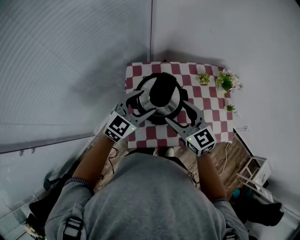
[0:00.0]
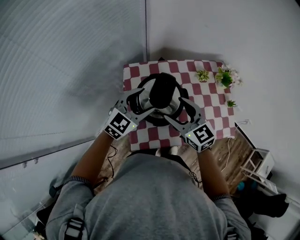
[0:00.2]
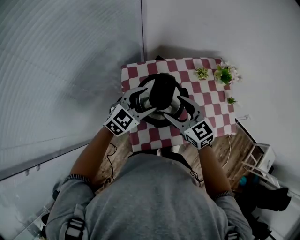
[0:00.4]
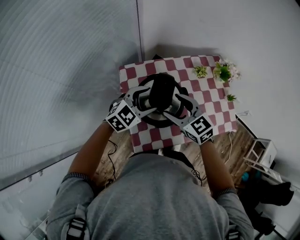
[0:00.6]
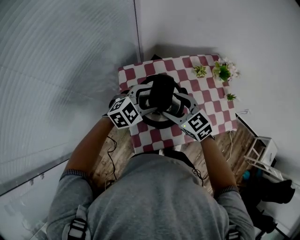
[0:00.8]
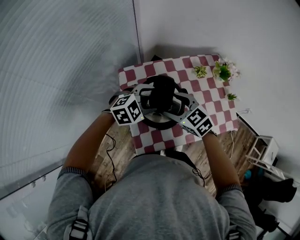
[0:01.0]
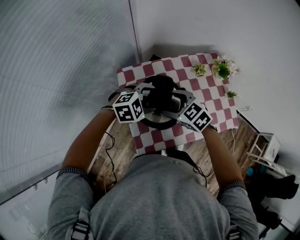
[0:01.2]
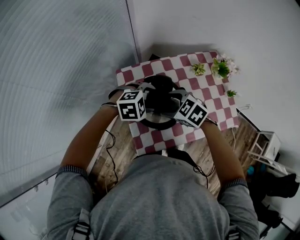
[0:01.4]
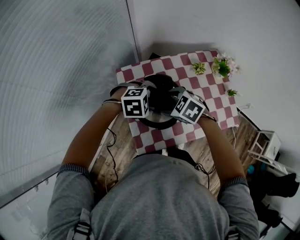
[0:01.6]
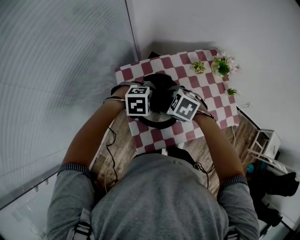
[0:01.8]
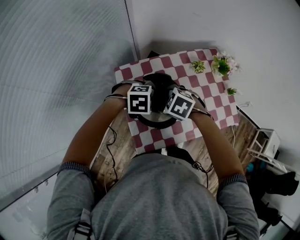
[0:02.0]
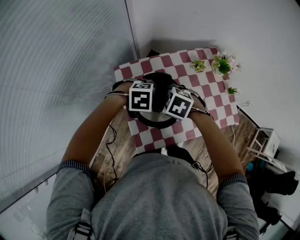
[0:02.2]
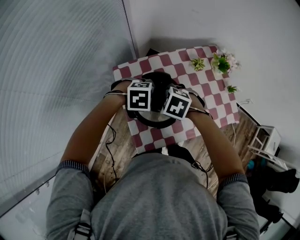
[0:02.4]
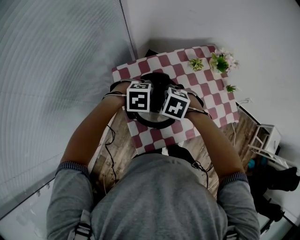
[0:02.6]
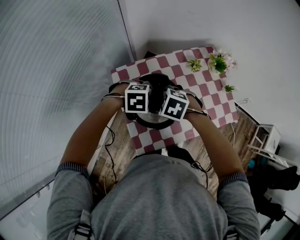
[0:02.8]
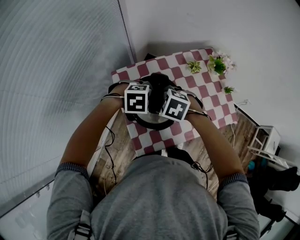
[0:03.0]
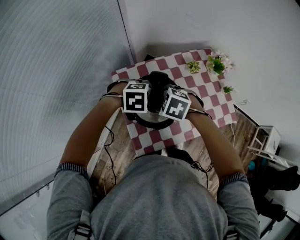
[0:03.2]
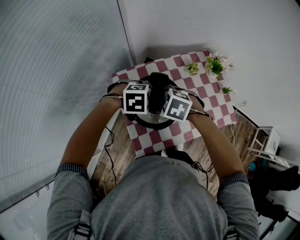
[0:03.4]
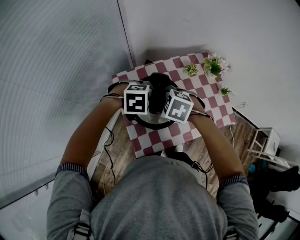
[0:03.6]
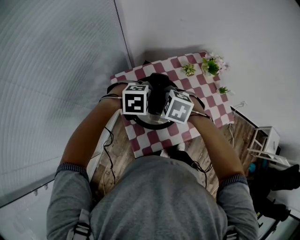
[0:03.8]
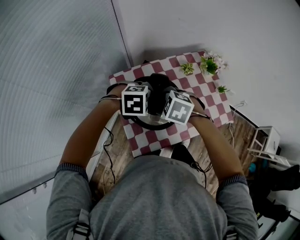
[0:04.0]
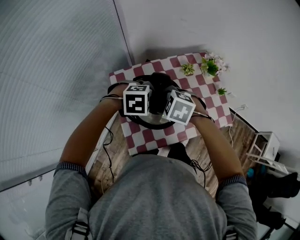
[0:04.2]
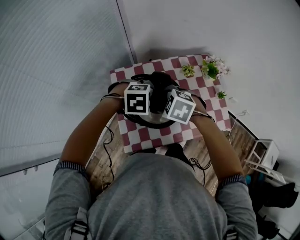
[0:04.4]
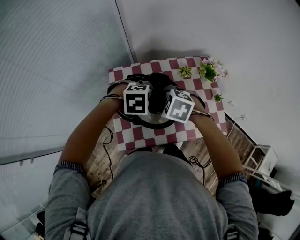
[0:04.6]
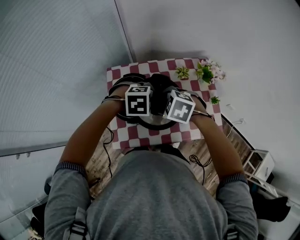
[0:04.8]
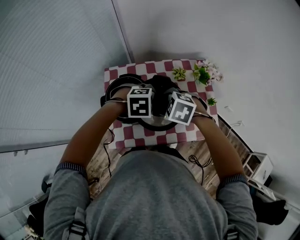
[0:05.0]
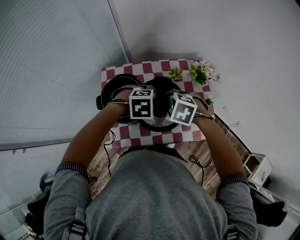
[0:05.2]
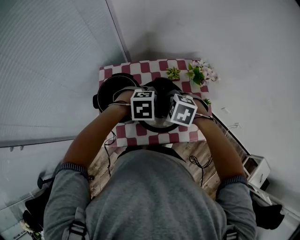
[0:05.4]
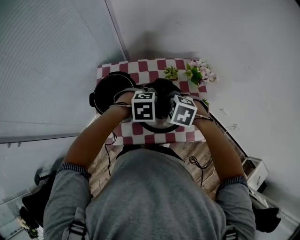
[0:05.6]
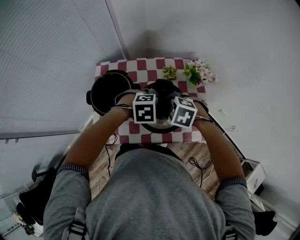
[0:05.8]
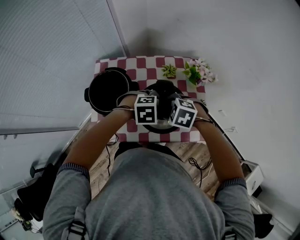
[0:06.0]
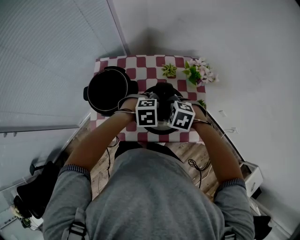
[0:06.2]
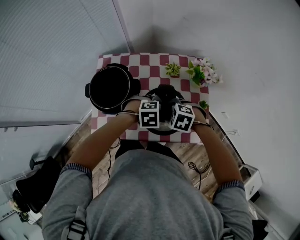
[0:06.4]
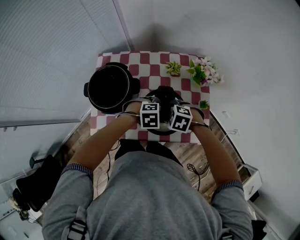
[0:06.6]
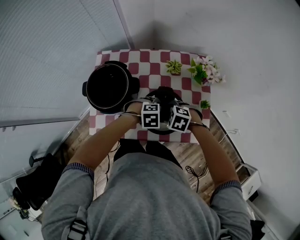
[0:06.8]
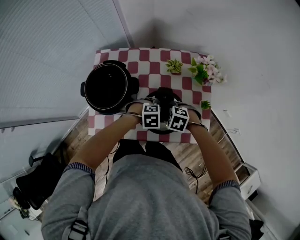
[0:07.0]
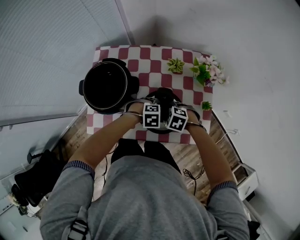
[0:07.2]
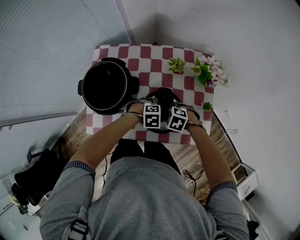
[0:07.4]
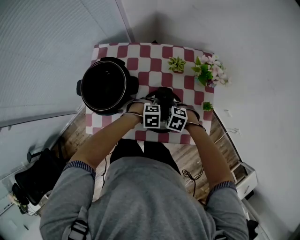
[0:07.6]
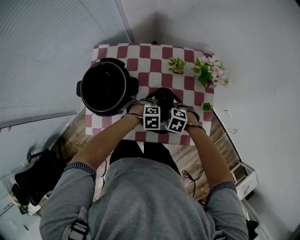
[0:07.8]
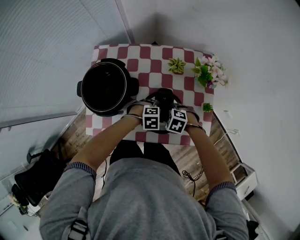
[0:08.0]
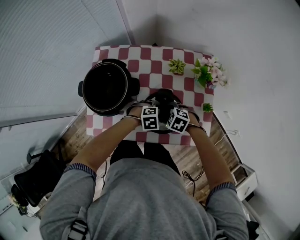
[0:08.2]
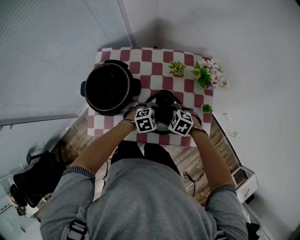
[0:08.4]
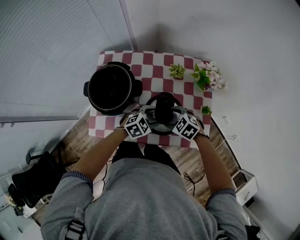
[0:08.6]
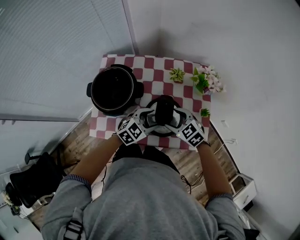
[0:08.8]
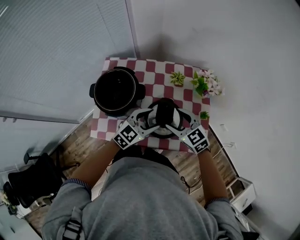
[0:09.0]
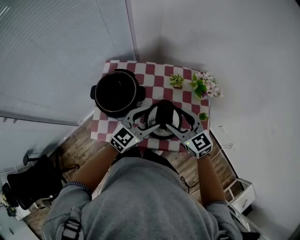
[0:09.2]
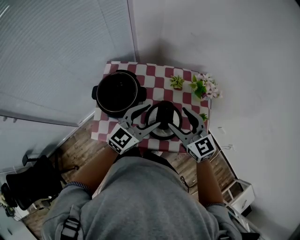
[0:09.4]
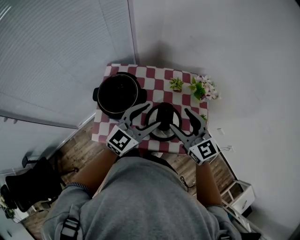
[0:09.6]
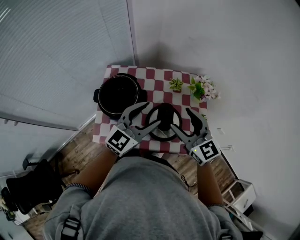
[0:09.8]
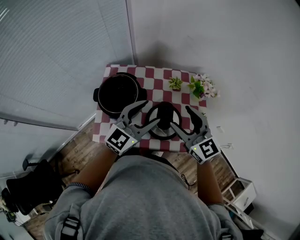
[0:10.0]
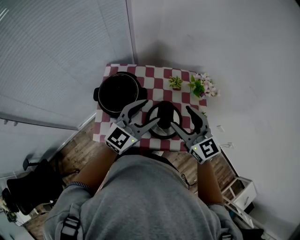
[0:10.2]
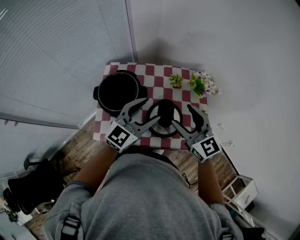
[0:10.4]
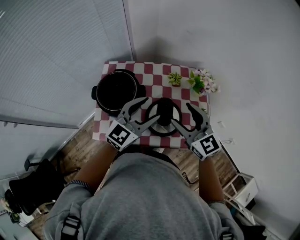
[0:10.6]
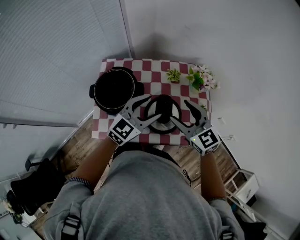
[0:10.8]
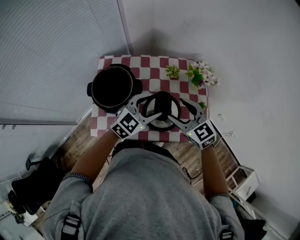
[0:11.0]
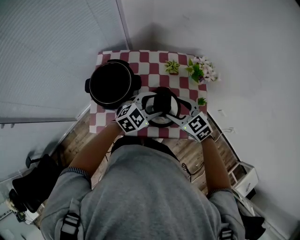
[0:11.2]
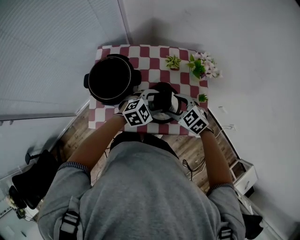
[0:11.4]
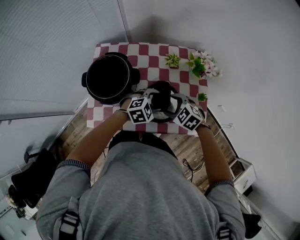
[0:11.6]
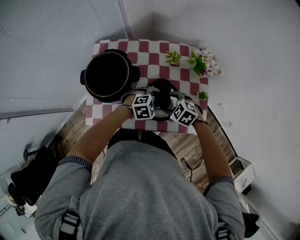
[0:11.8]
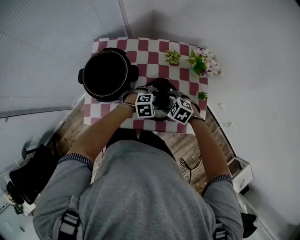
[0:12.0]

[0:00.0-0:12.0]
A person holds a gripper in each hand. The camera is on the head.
0:00.0 to 0:01.6: The two grippers go about 10 cm downward. The left gripper angles its fingers downward, by roughly 40 degrees. Meanwhile the right gripper points its fingers some 40 degrees further downward.
0:01.6 to 0:03.0: The grippers stay close to where they were, moving slightly.
0:03.0 to 0:04.4: The left gripper shifts by roughly 10 cm, while the right gripper shifts by about 10 cm.
0:04.4 to 0:06.0: The left gripper changes place by approximately 20 cm; the right gripper moves roughly 20 cm.
0:06.0 to 0:07.6: Both grippers travel together downward, about 20 cm.
0:07.6 to 0:09.0: Both grippers travel together upward, about 20 cm. The right gripper angles its fingers upward, by approximately 40 degrees. Meanwhile the left gripper angles its fingers upward, by some 50 degrees.
0:09.0 to 0:10.4: The grippers both shift upward by some 15 cm. The left gripper swivels some 20 degrees. The right gripper turns by some 20 degrees.
0:10.4 to 0:12.0: Both grippers travel together downward, approximately 30 cm. The left gripper tips its fingers downward by roughly 60 degrees; the right gripper points its fingers some 50 degrees further downward.

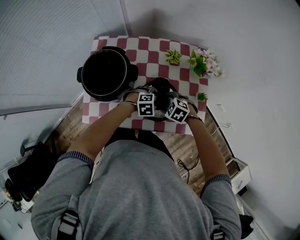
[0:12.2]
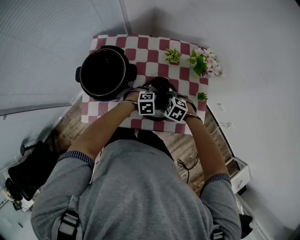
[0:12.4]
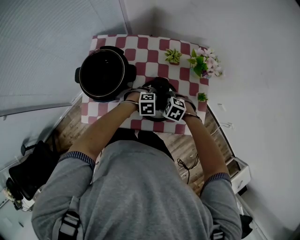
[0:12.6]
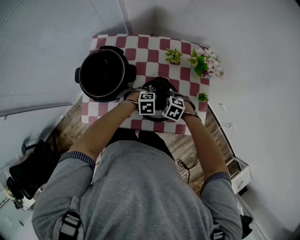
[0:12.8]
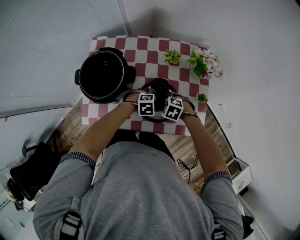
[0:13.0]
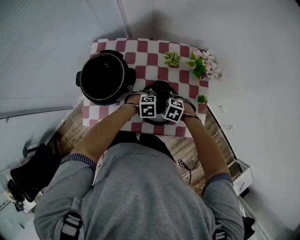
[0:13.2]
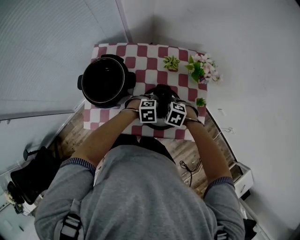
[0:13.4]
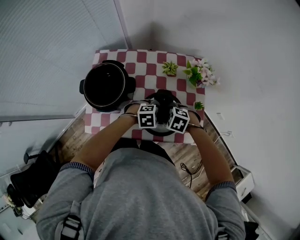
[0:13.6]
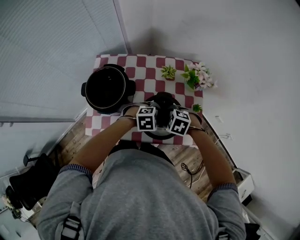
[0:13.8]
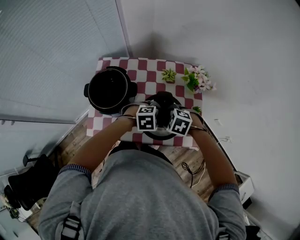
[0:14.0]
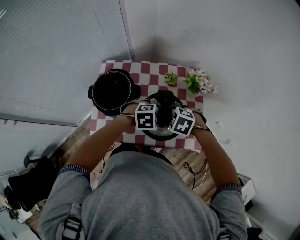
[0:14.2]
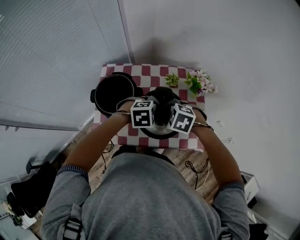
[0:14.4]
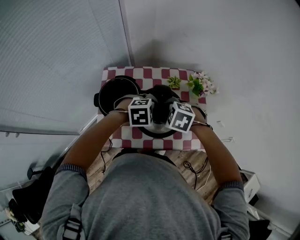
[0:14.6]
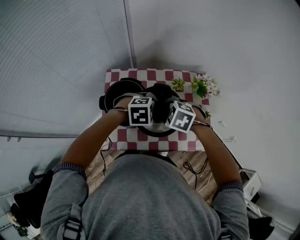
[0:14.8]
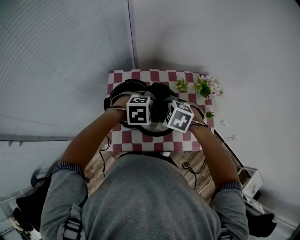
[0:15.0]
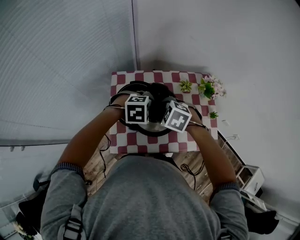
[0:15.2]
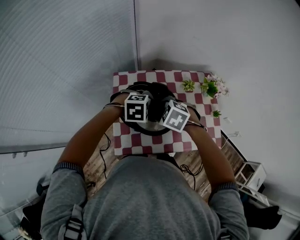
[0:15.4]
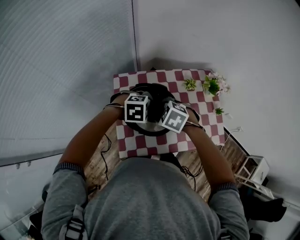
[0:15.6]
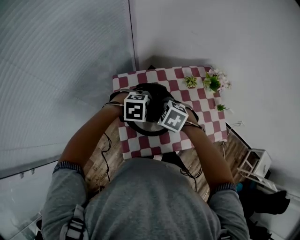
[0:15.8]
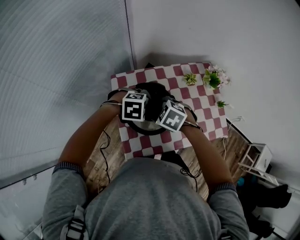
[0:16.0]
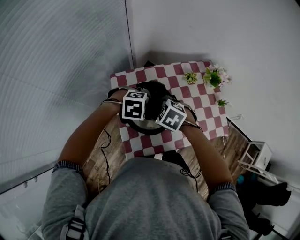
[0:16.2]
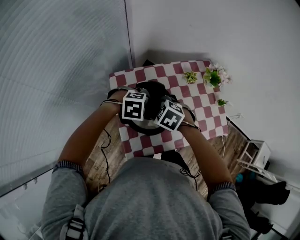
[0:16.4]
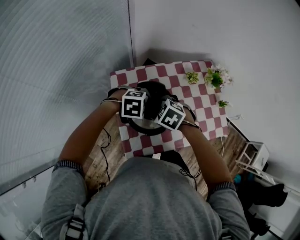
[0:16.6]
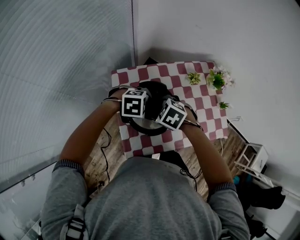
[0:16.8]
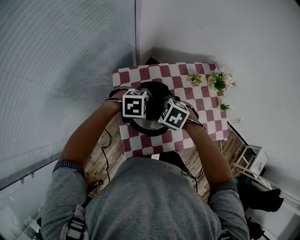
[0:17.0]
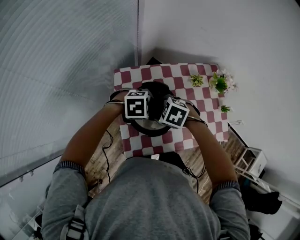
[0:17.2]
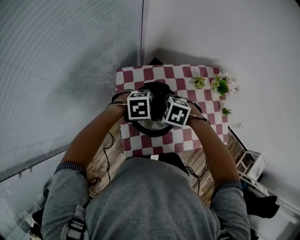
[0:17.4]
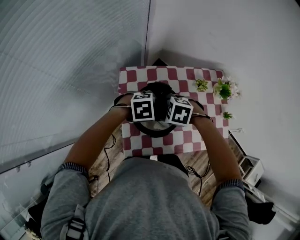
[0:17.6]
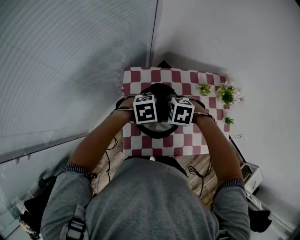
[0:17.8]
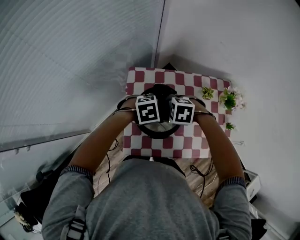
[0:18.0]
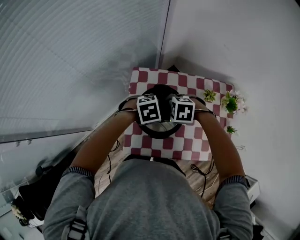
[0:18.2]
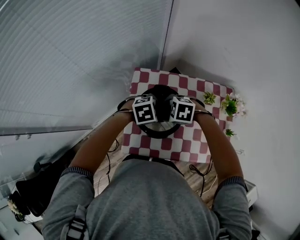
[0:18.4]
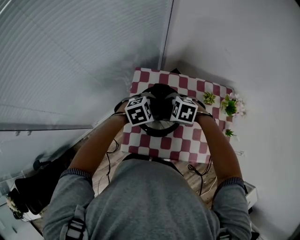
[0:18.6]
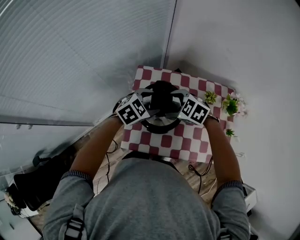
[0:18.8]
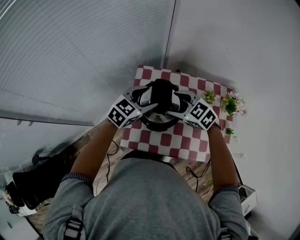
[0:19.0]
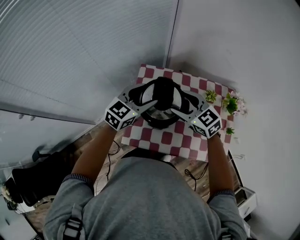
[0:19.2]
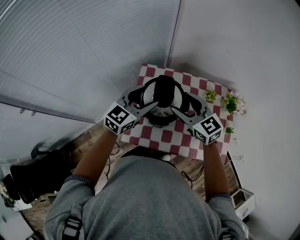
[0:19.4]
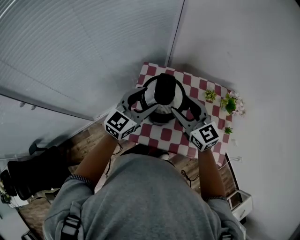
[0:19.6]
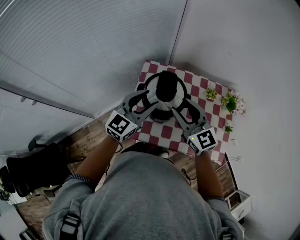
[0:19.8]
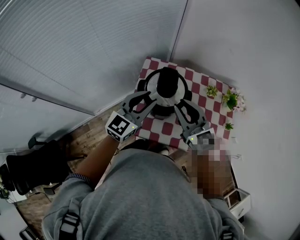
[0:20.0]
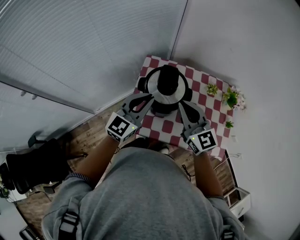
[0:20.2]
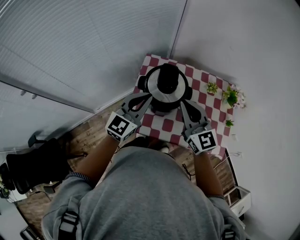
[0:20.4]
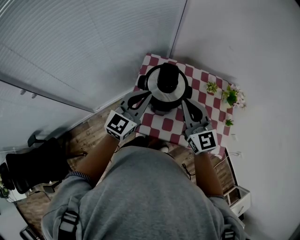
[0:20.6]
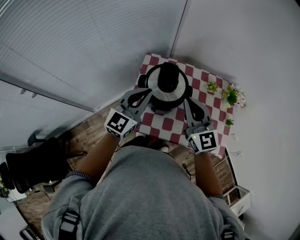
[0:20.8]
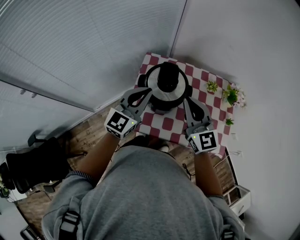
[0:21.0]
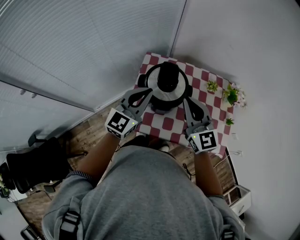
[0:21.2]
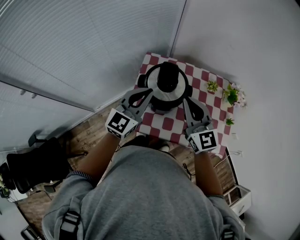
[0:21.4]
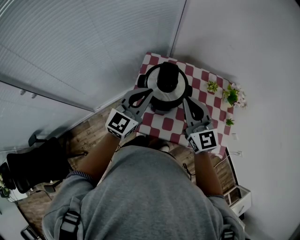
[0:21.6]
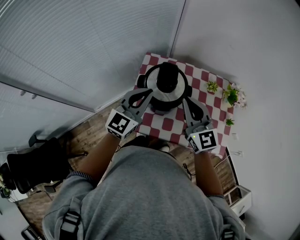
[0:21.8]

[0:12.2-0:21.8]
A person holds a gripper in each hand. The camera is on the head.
0:12.2 to 0:13.8: Both grippers move upward, some 10 cm.
0:13.8 to 0:15.4: The left gripper moves roughly 30 cm, while the right gripper changes place by approximately 30 cm.
0:15.4 to 0:17.0: The left gripper ends up approximately 10 cm from where it was, while the right gripper ends up some 10 cm from where it was.
0:17.0 to 0:18.6: The right gripper rotates roughly 30 degrees. Meanwhile the left gripper rotates some 40 degrees.
0:18.6 to 0:20.2: The grippers both shift upward by approximately 15 cm. The right gripper points its fingers approximately 60 degrees further upward, and closes up. The left gripper tips its fingers upward by roughly 50 degrees, and closes its fingers.
0:20.2 to 0:21.8: The grippers stay close to where they were, moving slightly.

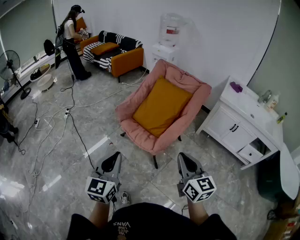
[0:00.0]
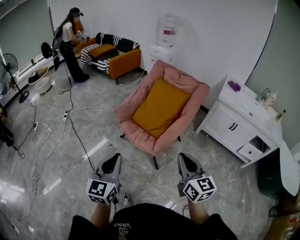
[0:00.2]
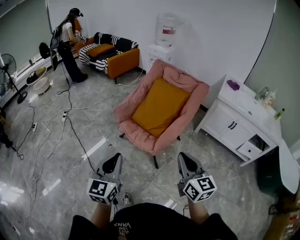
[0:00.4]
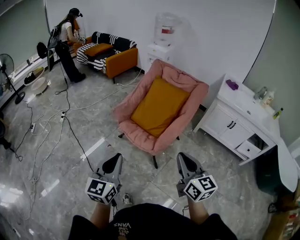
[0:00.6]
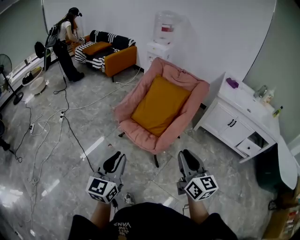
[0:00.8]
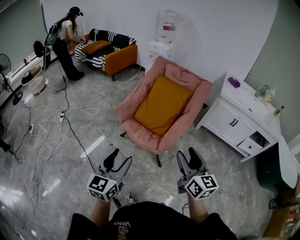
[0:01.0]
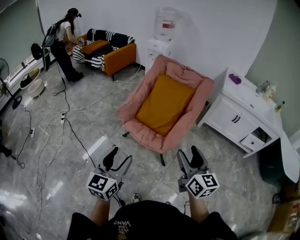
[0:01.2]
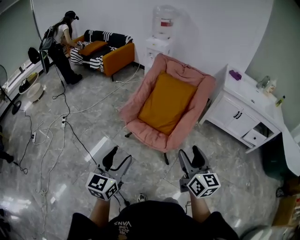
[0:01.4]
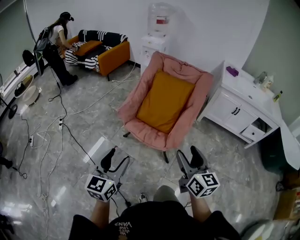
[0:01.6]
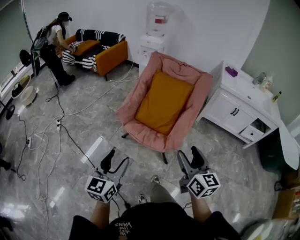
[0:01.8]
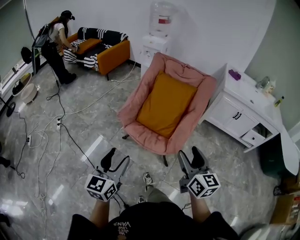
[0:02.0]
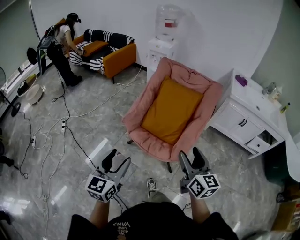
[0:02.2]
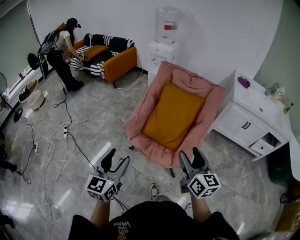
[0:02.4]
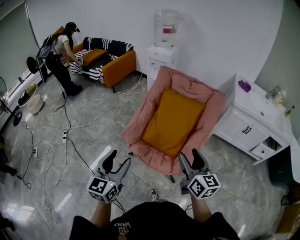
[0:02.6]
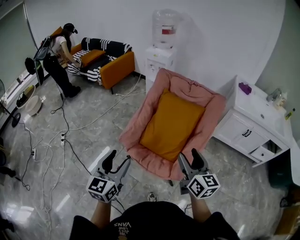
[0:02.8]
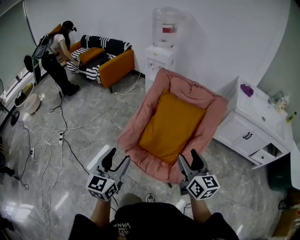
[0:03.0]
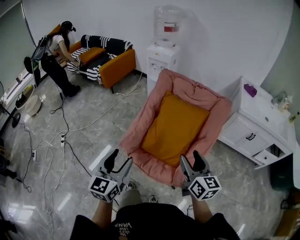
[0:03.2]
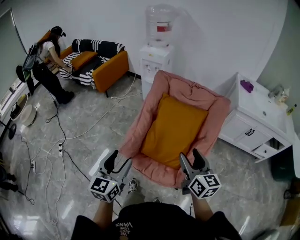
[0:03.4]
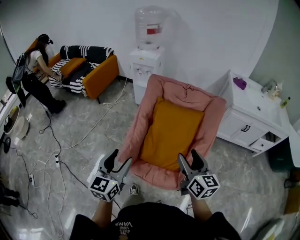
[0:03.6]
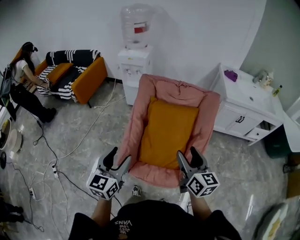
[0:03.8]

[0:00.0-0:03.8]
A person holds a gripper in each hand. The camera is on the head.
0:00.0 to 0:01.2: The left gripper shifts approximately 10 cm to the left and forward, and opens its fingers; the right gripper heads to the left, covering roughly 10 cm, and opens its fingers.
0:01.2 to 0:02.6: The grippers both shift forward by roughly 20 cm.
0:02.6 to 0:03.8: The grippers both shift forward by some 20 cm.
